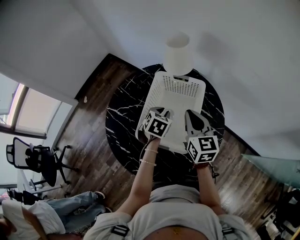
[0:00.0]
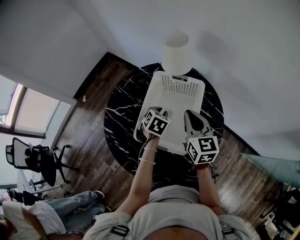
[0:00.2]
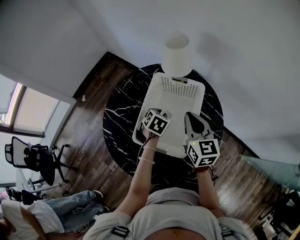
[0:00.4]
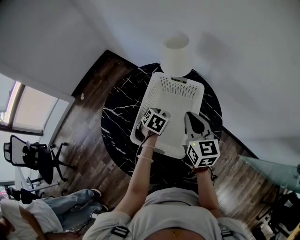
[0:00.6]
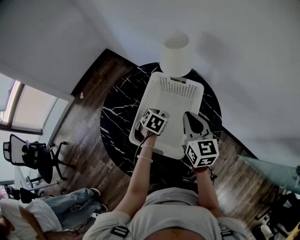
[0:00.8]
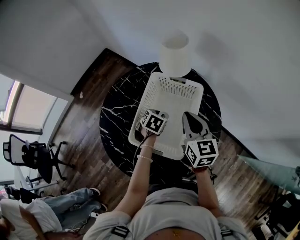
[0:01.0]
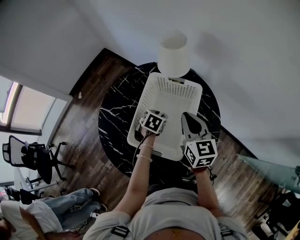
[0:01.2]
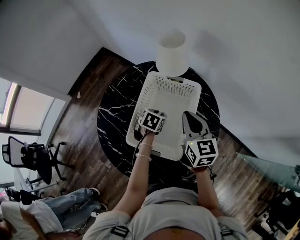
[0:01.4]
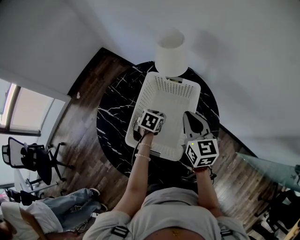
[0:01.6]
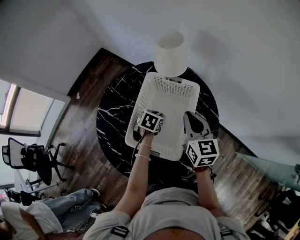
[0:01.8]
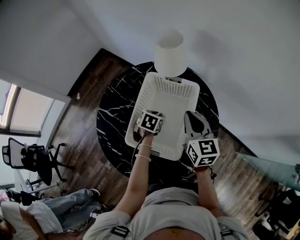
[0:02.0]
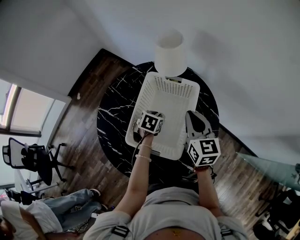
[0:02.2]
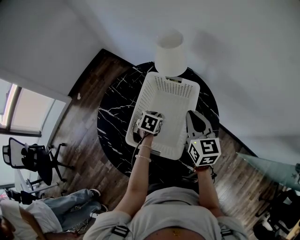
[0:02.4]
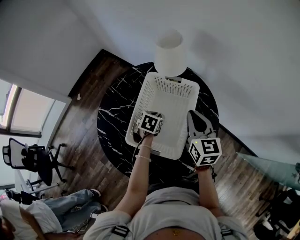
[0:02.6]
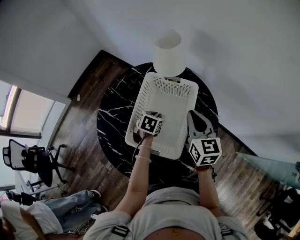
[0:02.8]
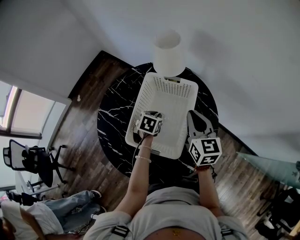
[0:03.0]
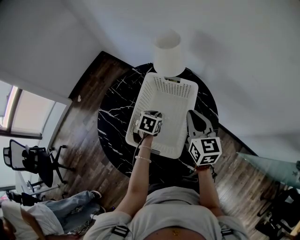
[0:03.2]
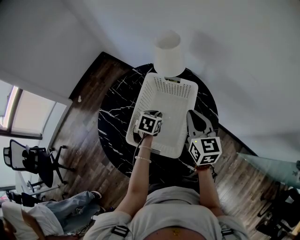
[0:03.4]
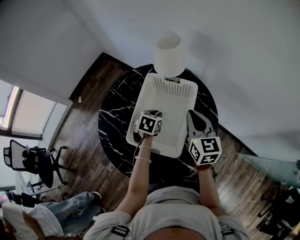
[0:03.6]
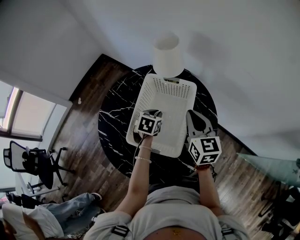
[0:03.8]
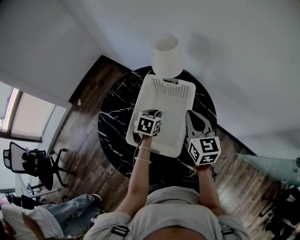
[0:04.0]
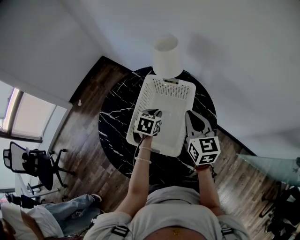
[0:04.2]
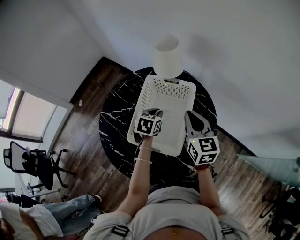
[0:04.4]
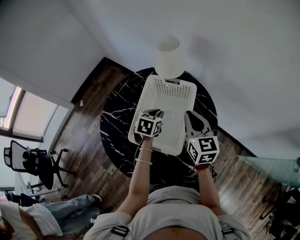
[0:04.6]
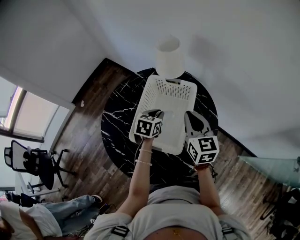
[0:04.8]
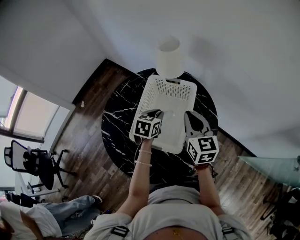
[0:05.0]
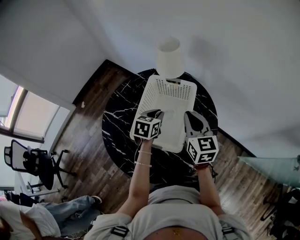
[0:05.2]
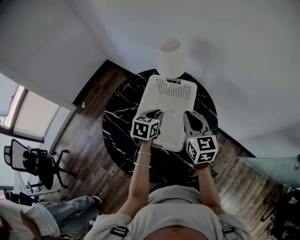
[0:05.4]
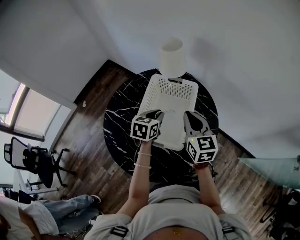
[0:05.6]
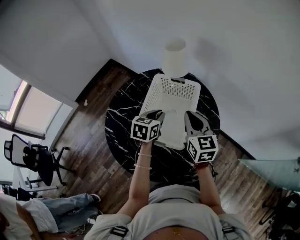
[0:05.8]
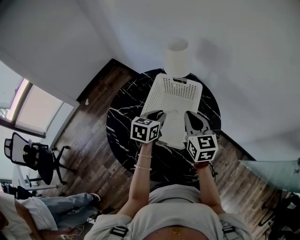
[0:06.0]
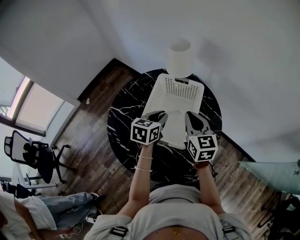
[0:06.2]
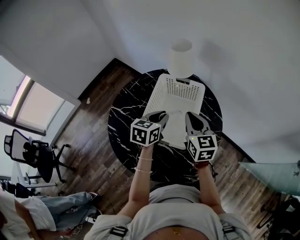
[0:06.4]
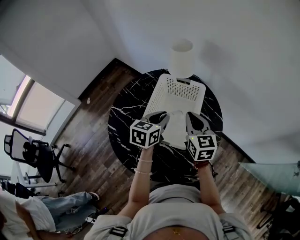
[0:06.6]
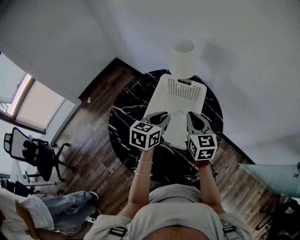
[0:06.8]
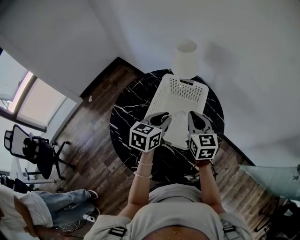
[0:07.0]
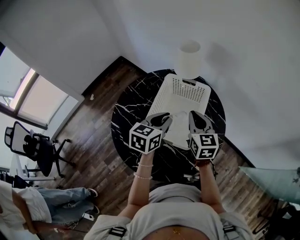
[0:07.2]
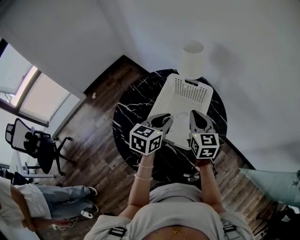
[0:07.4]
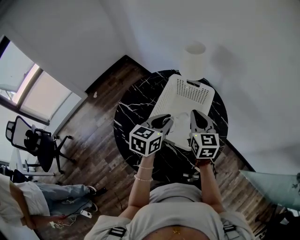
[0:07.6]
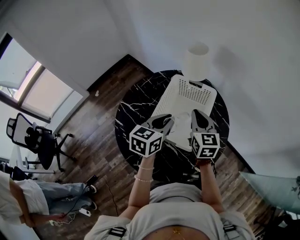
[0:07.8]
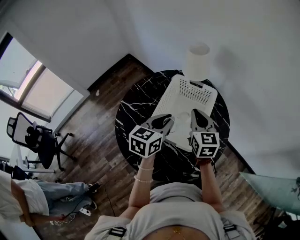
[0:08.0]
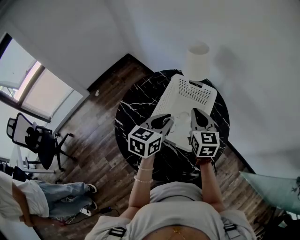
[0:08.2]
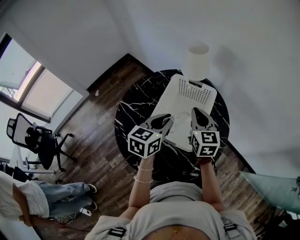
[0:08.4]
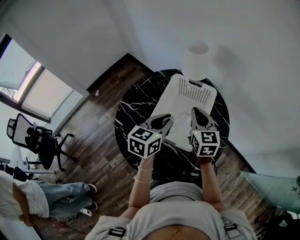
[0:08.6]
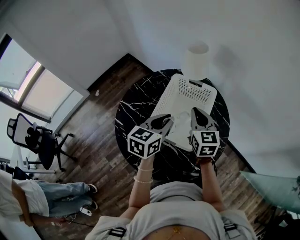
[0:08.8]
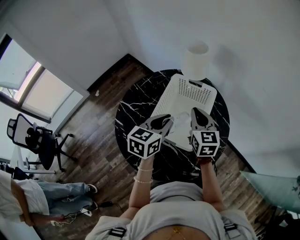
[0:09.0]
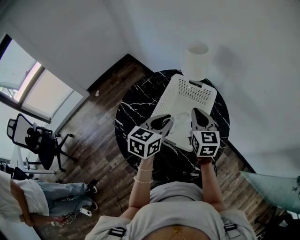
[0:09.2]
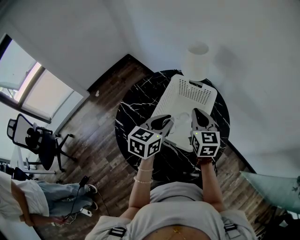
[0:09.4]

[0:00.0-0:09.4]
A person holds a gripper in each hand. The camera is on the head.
0:00.0 to 0:01.6: The left gripper heads downward, covering some 10 cm.
0:01.6 to 0:03.2: The grippers make only small movements.
0:03.2 to 0:04.8: The left gripper is displaced upward by some 10 cm.
0:04.8 to 0:06.2: The left gripper goes some 5 cm upward.
0:06.2 to 0:07.8: The left gripper heads upward, covering some 5 cm.
0:07.8 to 0:09.4: The two grippers keep their place.

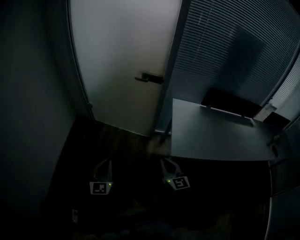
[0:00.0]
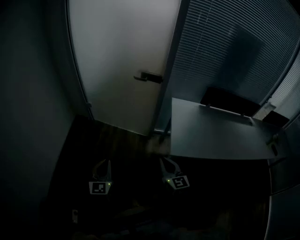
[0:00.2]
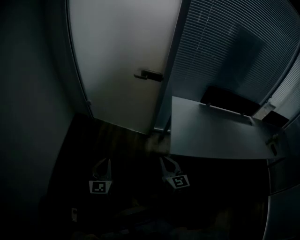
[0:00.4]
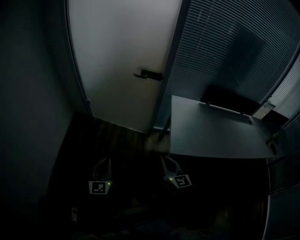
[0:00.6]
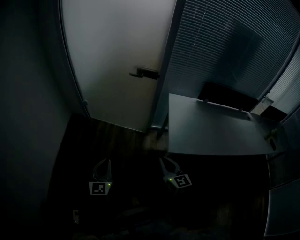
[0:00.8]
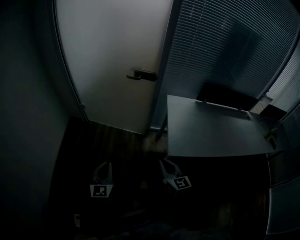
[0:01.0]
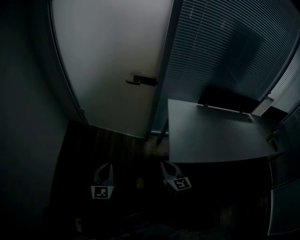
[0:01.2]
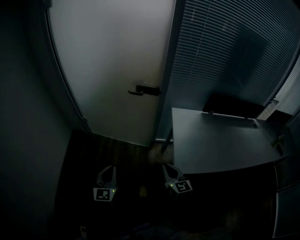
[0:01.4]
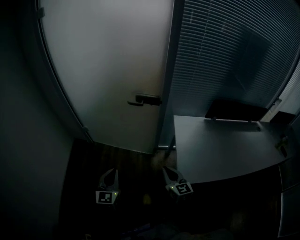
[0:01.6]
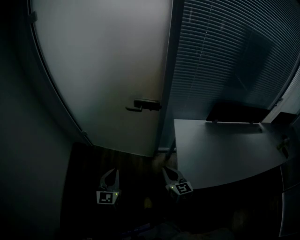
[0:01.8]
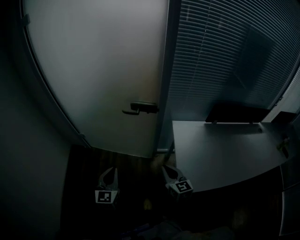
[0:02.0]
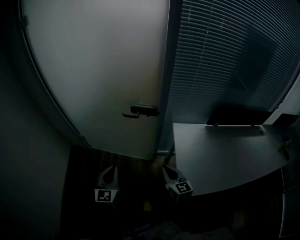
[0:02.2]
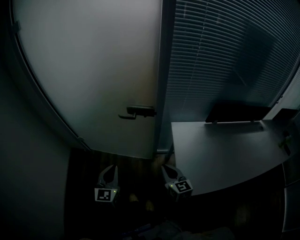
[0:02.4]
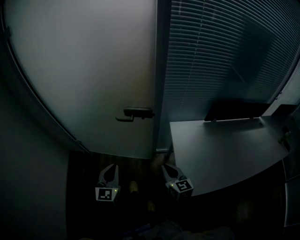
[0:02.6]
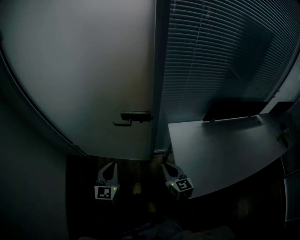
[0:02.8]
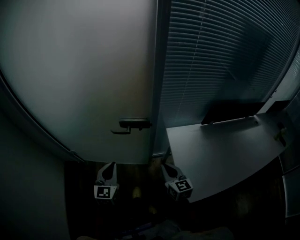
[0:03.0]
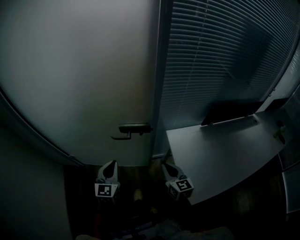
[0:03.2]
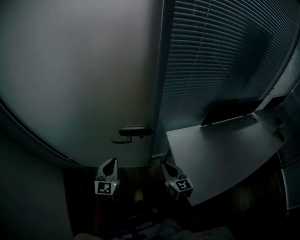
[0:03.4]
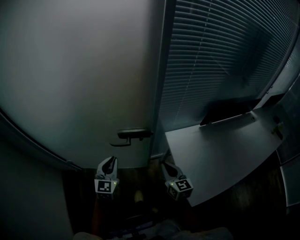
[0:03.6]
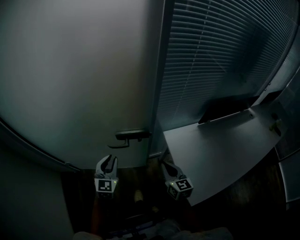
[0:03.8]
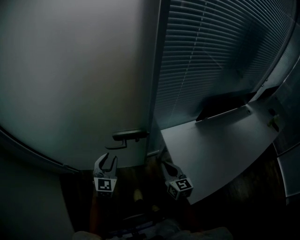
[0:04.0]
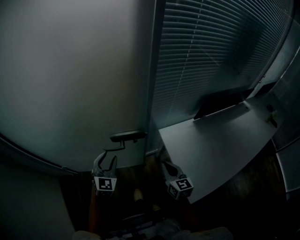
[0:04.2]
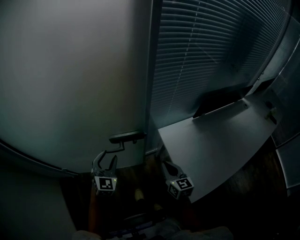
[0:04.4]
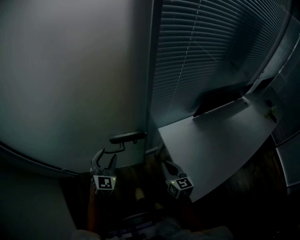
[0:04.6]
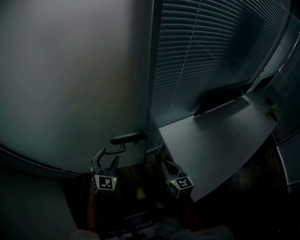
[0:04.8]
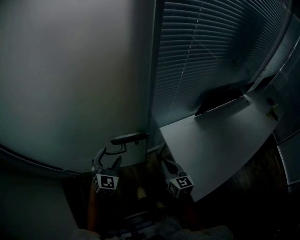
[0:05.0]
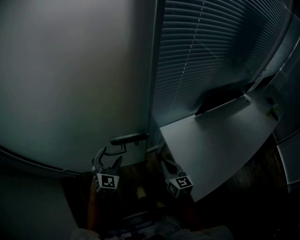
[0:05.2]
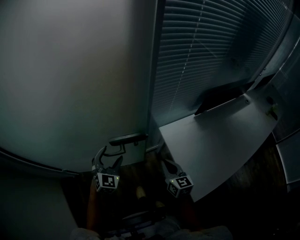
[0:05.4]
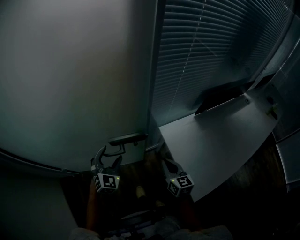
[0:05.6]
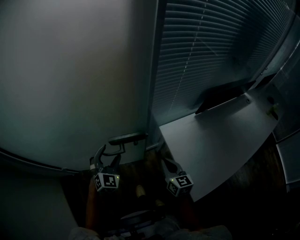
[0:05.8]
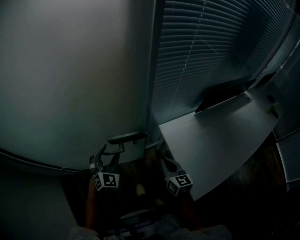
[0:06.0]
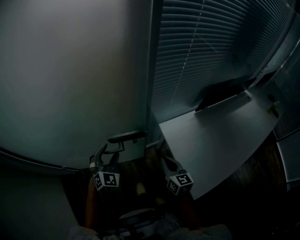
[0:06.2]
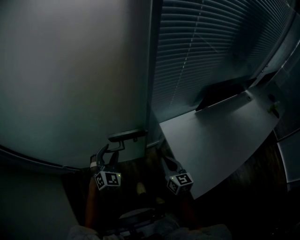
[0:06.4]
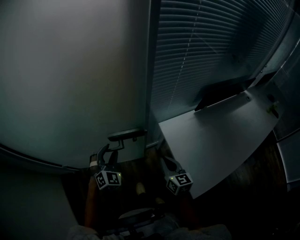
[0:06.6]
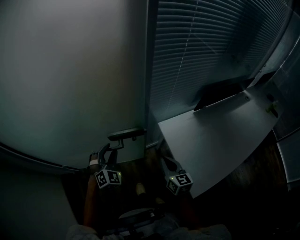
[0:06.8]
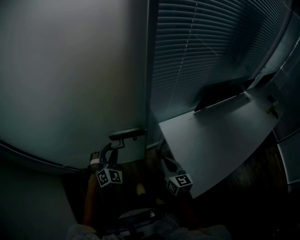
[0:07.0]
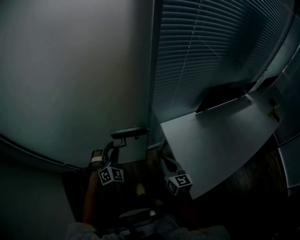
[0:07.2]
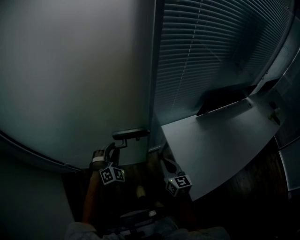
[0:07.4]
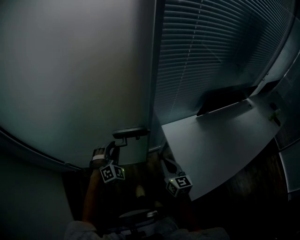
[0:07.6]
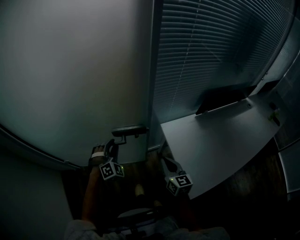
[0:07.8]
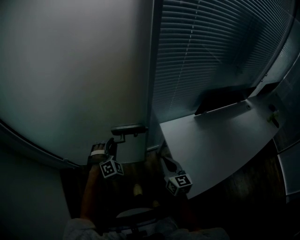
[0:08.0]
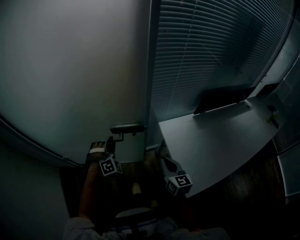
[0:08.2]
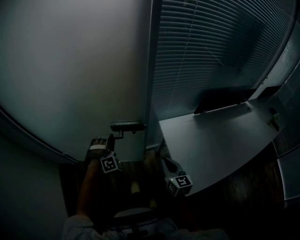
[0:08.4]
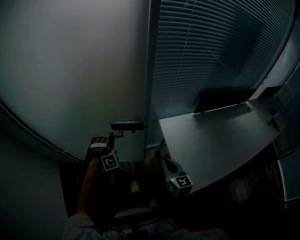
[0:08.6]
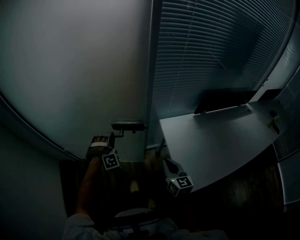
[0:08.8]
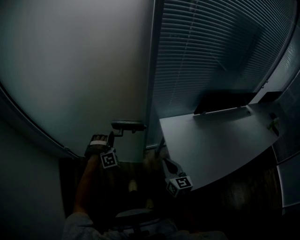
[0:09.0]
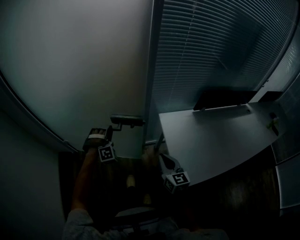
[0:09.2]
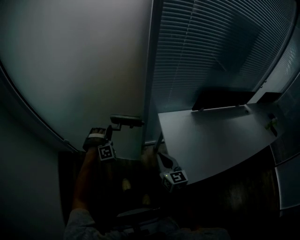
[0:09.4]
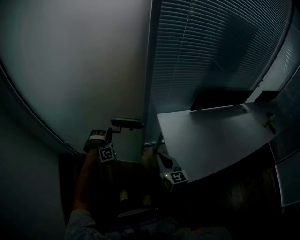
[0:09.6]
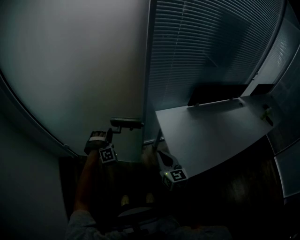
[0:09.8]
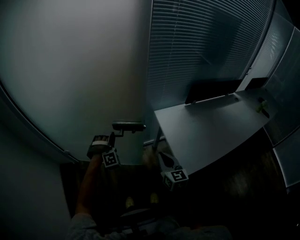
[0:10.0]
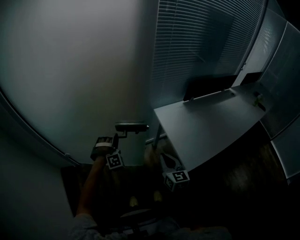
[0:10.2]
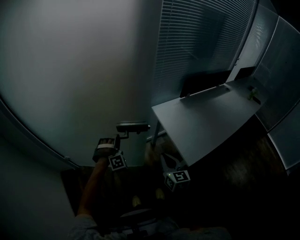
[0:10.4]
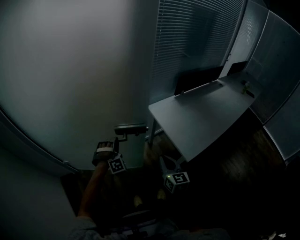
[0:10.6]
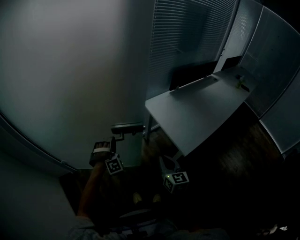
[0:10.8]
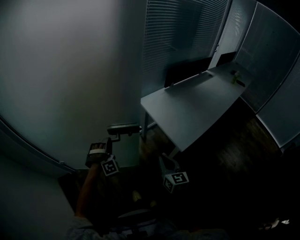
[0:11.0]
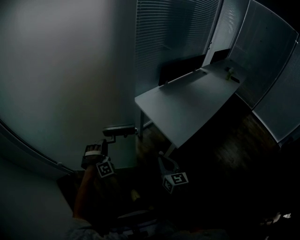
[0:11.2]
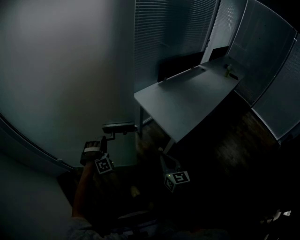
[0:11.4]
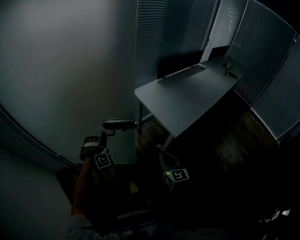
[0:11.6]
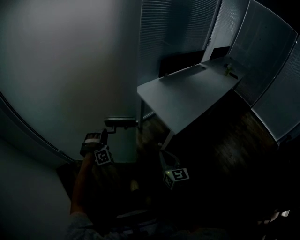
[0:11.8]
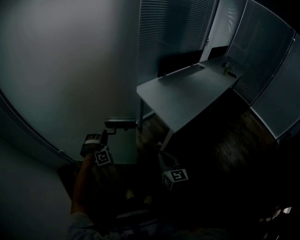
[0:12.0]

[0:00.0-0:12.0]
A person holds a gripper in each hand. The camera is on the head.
0:00.0 to 0:01.6: The grippers both shift forward by roughly 20 cm.
0:01.6 to 0:03.0: Both grippers travel together forward, about 25 cm.
0:03.0 to 0:04.4: The right gripper heads forward, covering approximately 5 cm. Meanwhile the left gripper heads forward, covering about 15 cm, rotates about 30 degrees, and opens its fingers.
0:04.4 to 0:06.0: There are only small adjustments of the grippers.
0:06.0 to 0:07.6: The left gripper changes its angle by approximately 20 degrees, and closes its fingers.
0:07.6 to 0:09.0: The right gripper is displaced backward by roughly 10 cm. Meanwhile the left gripper moves backward, approximately 5 cm, and swivels some 20 degrees.
0:09.0 to 0:10.4: The left gripper heads backward, covering about 10 cm, while the right gripper shifts roughly 15 cm backward and to the left.
0:10.4 to 0:12.0: The grippers both shift backward by approximately 20 cm.

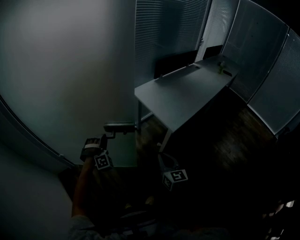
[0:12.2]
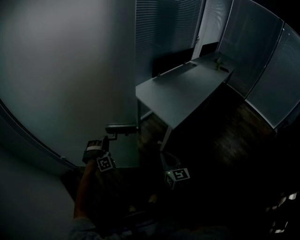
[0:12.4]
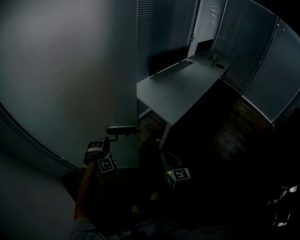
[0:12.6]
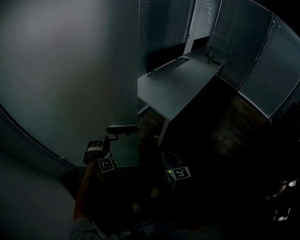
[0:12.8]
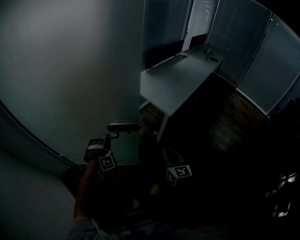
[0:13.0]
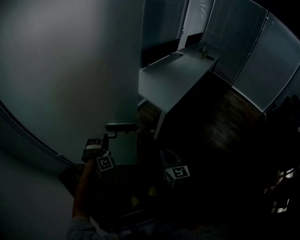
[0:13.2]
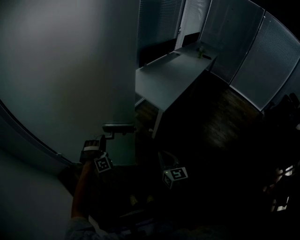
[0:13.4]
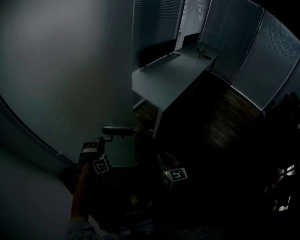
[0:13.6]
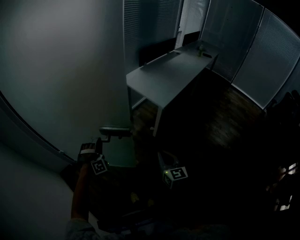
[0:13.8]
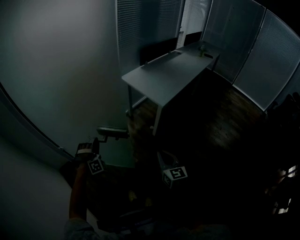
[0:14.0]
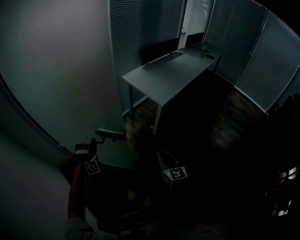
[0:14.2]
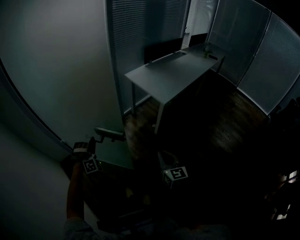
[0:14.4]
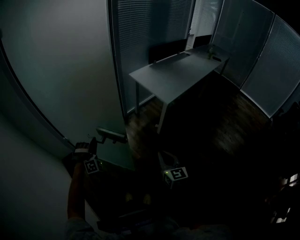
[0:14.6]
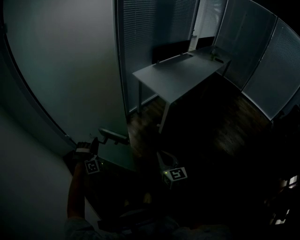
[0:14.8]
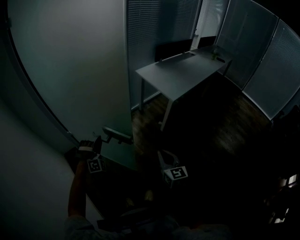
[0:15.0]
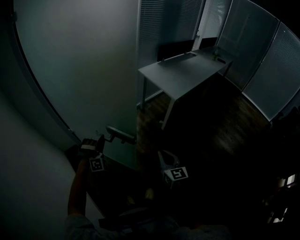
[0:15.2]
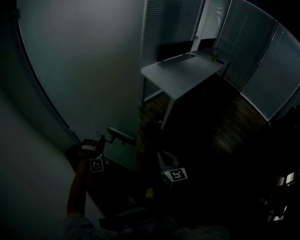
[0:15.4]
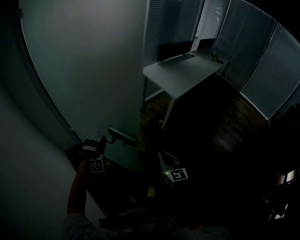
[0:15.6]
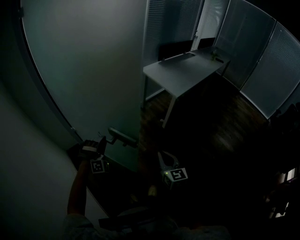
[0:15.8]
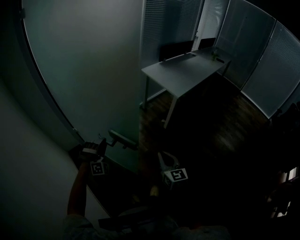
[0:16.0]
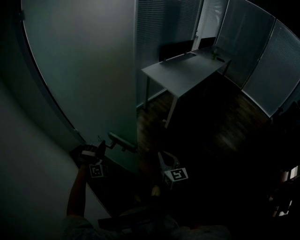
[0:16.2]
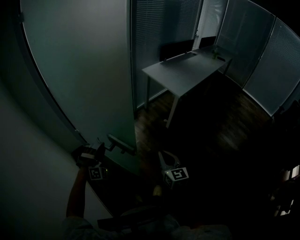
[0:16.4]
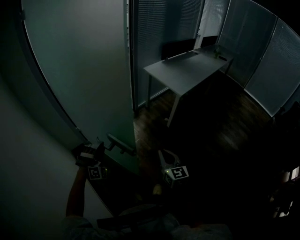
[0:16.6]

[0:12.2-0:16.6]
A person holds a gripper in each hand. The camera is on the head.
0:12.2 to 0:13.6: Both grippers move backward, about 15 cm.
0:13.6 to 0:15.2: The grippers both shift backward and to the left by about 15 cm.
0:15.2 to 0:16.6: The right gripper moves to the left, roughly 5 cm. Meanwhile the left gripper moves backward and to the left, roughly 10 cm.
